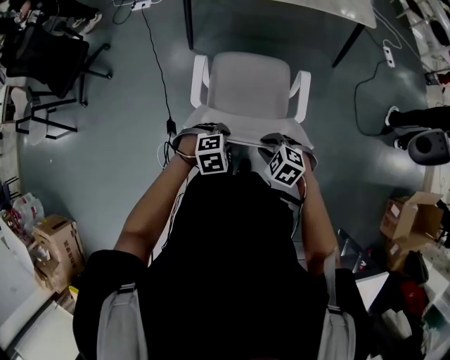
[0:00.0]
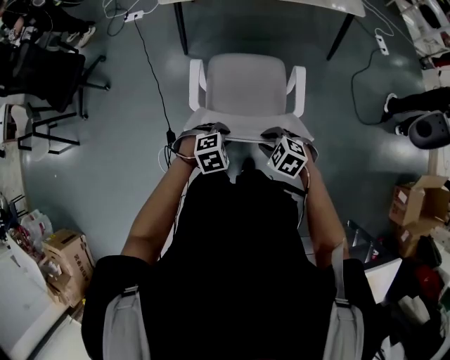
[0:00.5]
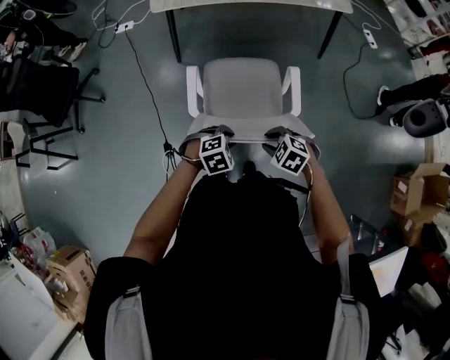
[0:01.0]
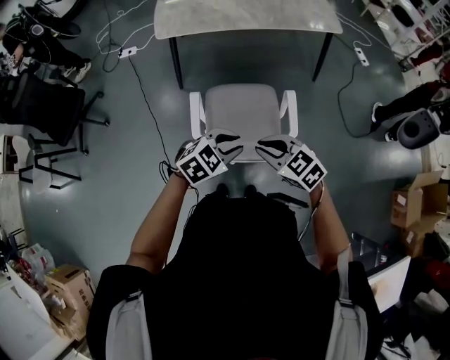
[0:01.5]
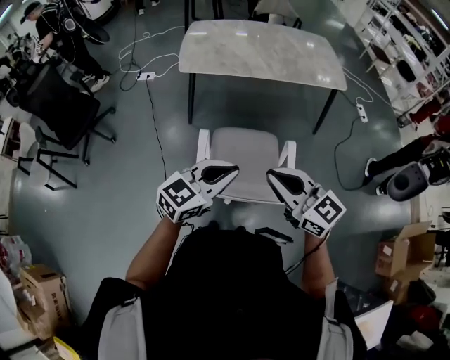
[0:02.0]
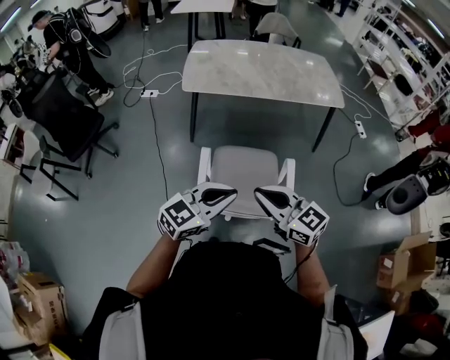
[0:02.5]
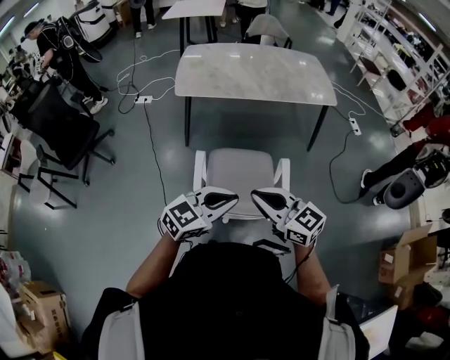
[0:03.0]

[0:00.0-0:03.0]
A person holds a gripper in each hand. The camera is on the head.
0:00.0 to 0:01.5: Both grippers move upward, some 15 cm. The right gripper swivels roughly 30 degrees, while the left gripper rotates some 30 degrees.
0:01.5 to 0:03.0: Both grippers move upward, some 15 cm. The right gripper rotates approximately 30 degrees. Meanwhile the left gripper swivels some 30 degrees, and closes.

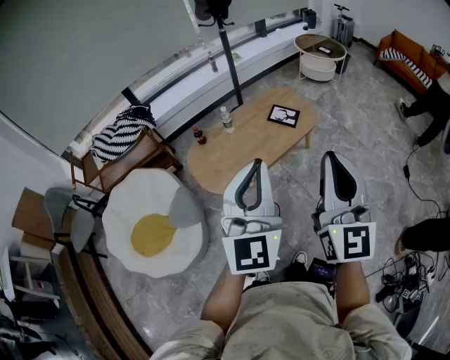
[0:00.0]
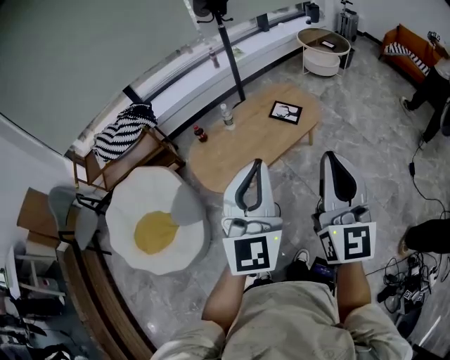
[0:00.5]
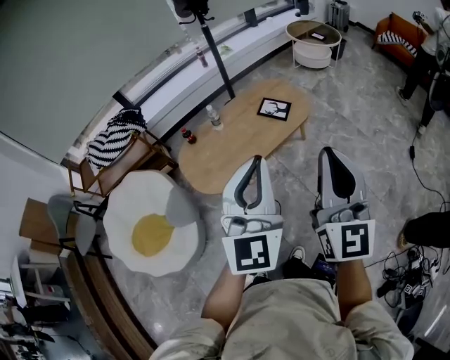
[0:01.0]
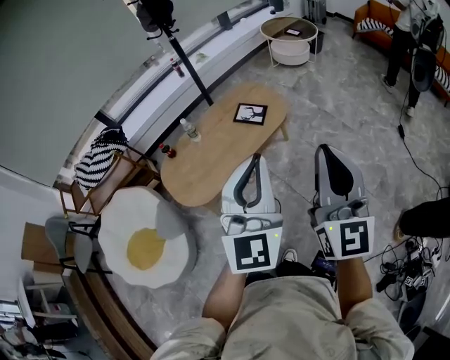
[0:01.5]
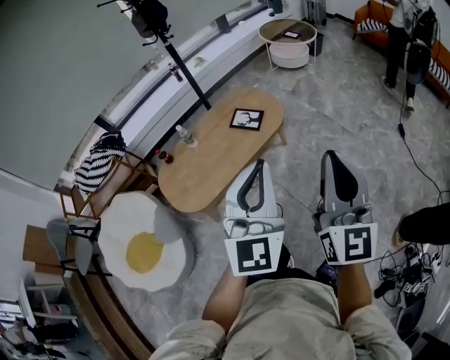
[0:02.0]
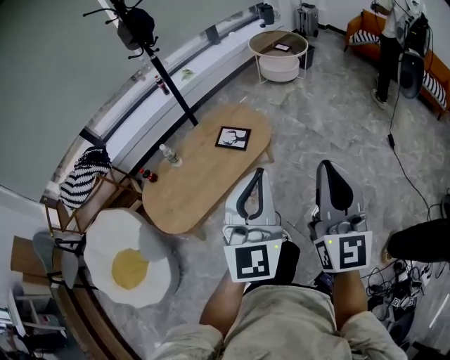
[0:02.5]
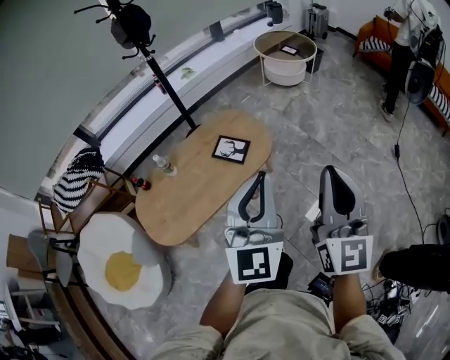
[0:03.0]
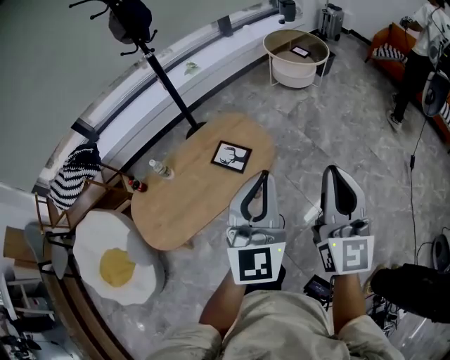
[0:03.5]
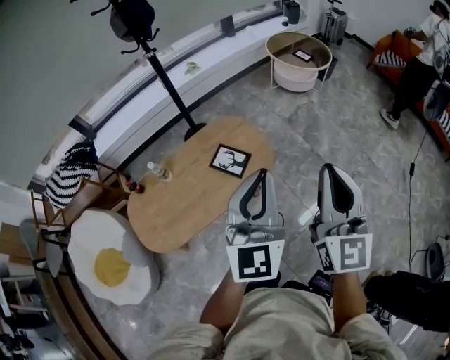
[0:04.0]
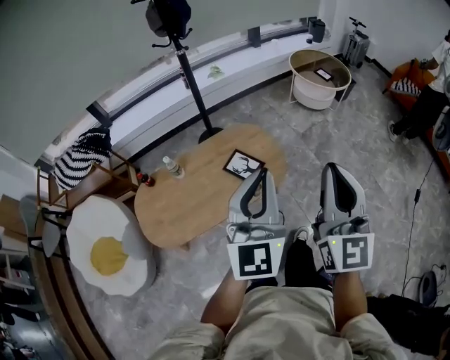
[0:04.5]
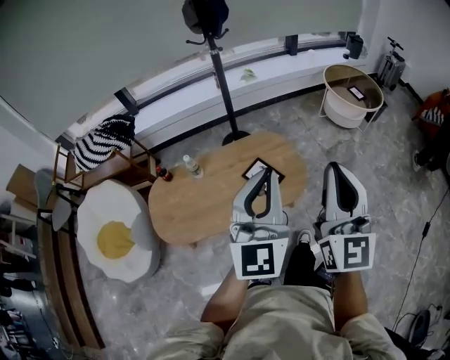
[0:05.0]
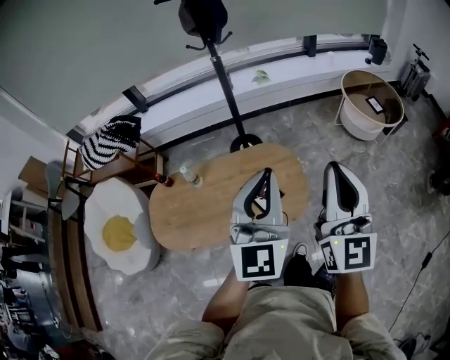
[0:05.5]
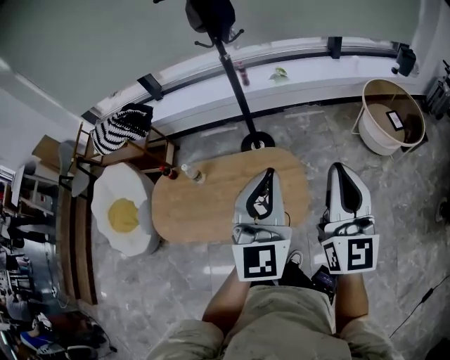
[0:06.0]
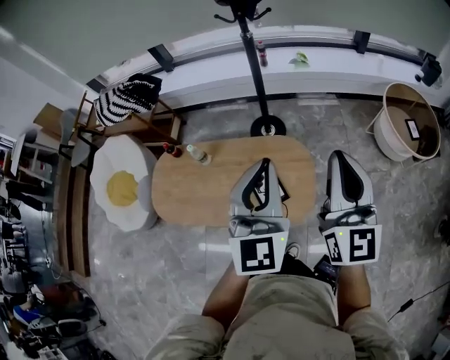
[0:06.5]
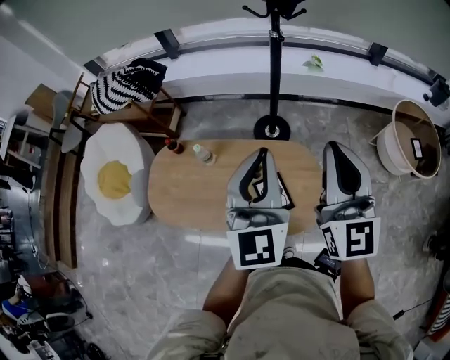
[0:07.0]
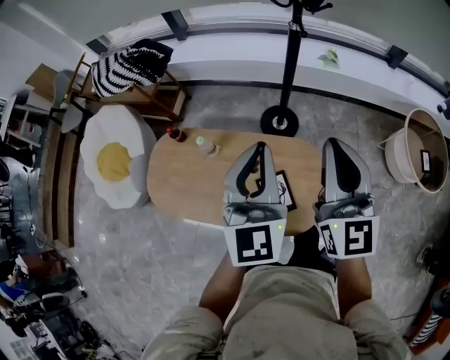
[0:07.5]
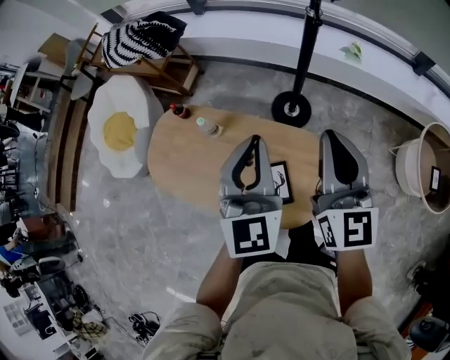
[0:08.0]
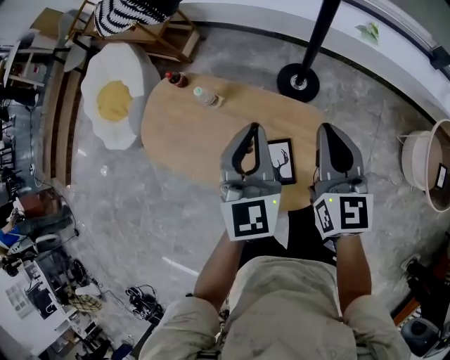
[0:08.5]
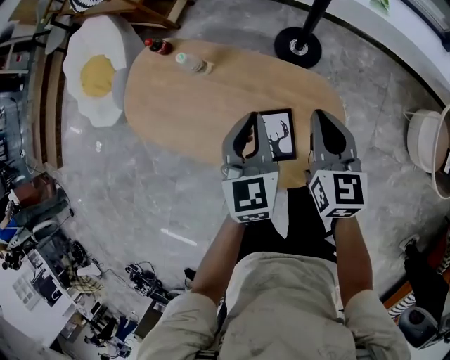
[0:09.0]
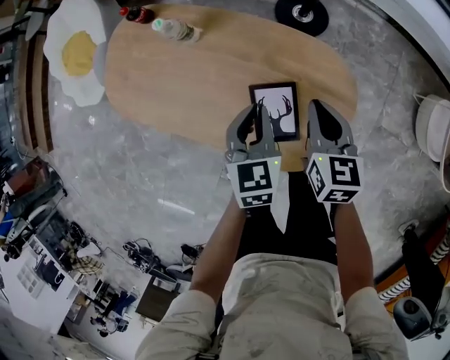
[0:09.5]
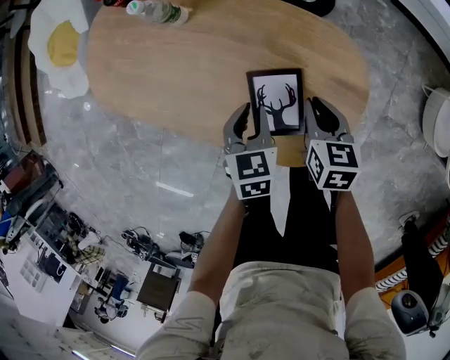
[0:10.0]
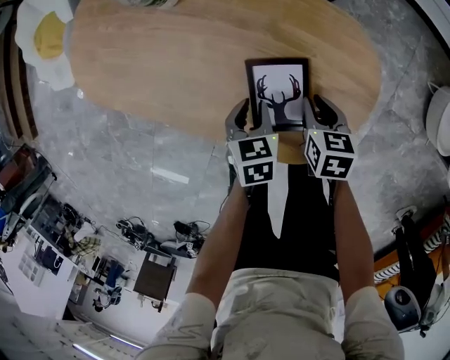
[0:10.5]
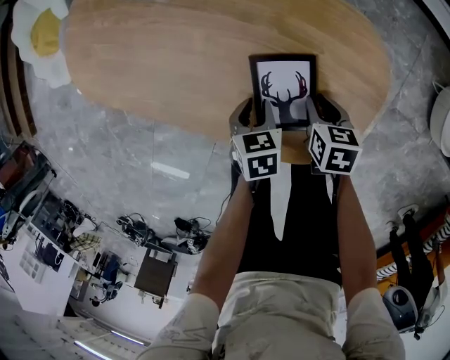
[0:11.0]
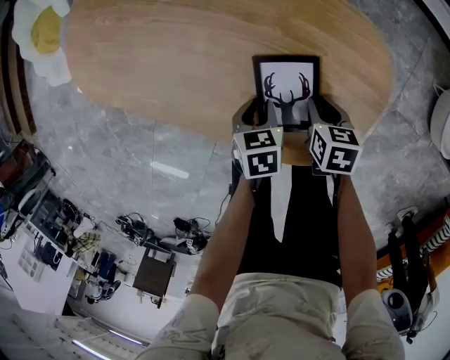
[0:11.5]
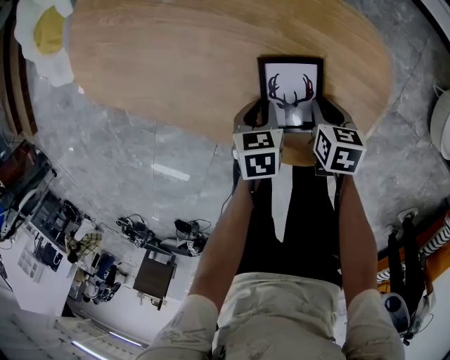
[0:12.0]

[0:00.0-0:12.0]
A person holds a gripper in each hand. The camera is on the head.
0:00.0 to 0:02.0: The left gripper goes approximately 30 cm to the right and forward. Meanwhile the right gripper travels to the right by roughly 25 cm.
0:02.0 to 0:04.0: The grippers both shift forward by about 35 cm.
0:04.0 to 0:06.0: The left gripper moves roughly 25 cm, and swivels roughly 30 degrees. The right gripper ends up approximately 35 cm from where it was, and swivels approximately 30 degrees.
0:06.0 to 0:08.0: The left gripper moves about 30 cm, and turns by approximately 30 degrees. Meanwhile the right gripper changes place by roughly 35 cm, and rotates some 30 degrees.
0:08.0 to 0:10.0: The two grippers go about 50 cm downward. The left gripper tilts its fingers some 40 degrees downward; the right gripper tilts its fingers approximately 50 degrees downward.
0:10.0 to 0:12.0: The left gripper heads downward and backward, covering roughly 15 cm, and turns by about 20 degrees. The right gripper is displaced downward by about 15 cm.

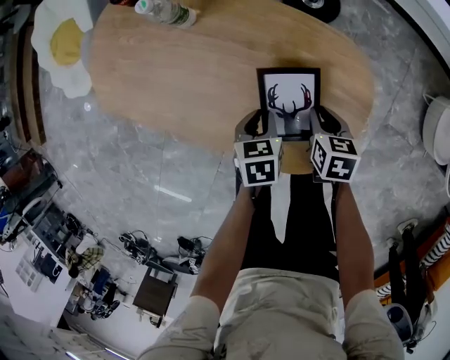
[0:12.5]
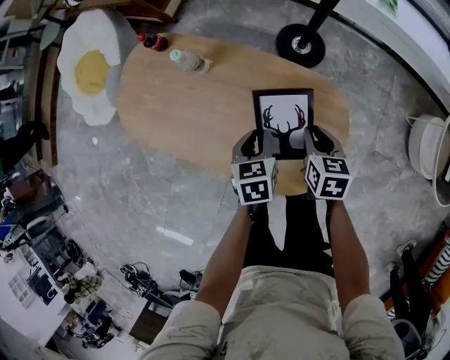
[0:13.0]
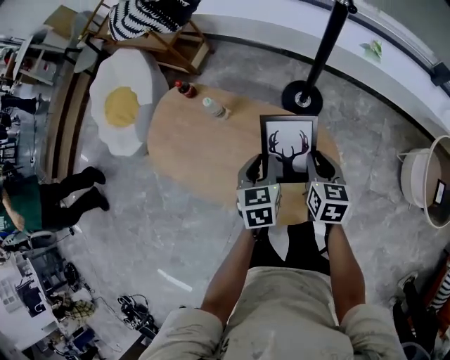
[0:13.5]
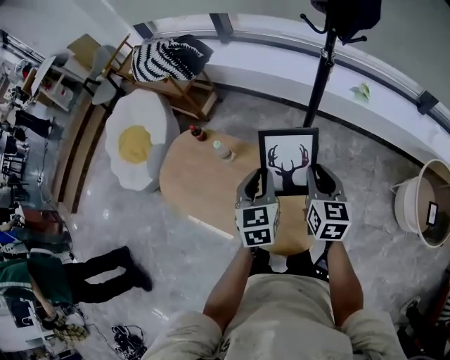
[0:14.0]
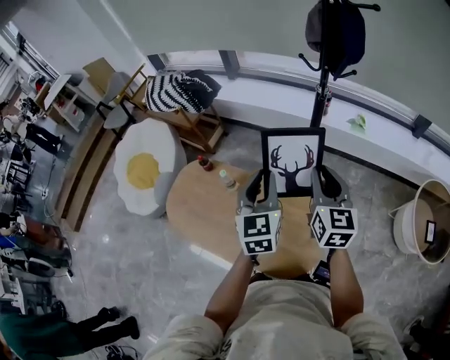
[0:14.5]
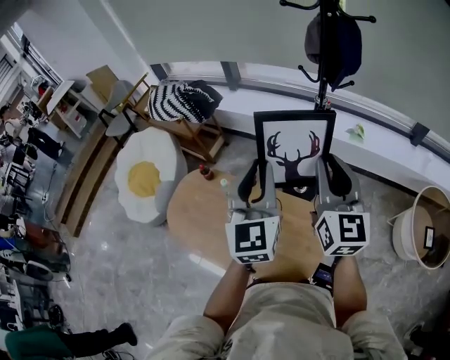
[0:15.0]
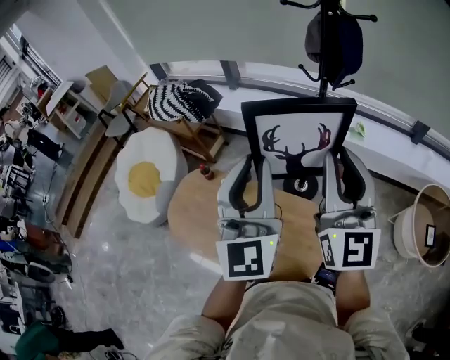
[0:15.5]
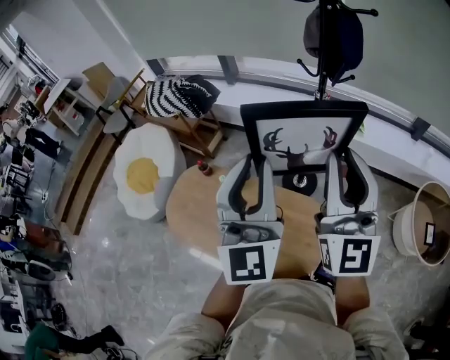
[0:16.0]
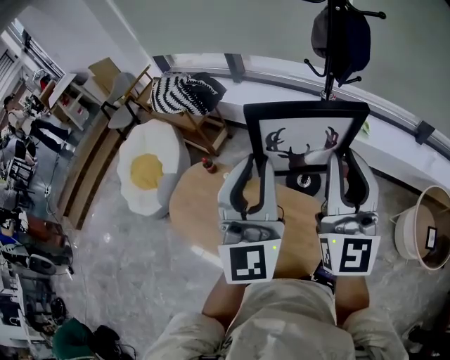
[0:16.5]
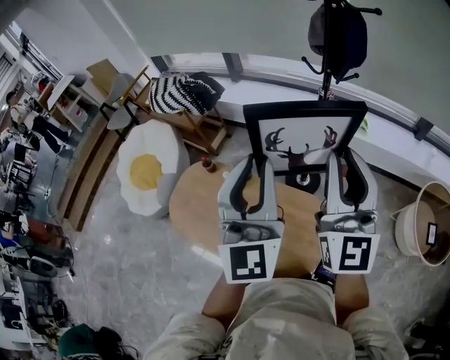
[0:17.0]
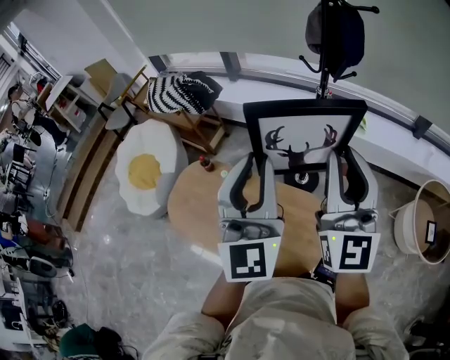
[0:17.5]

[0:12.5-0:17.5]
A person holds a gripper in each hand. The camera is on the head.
0:12.5 to 0:15.0: The two grippers go some 70 cm upward. The right gripper angles its fingers upward, by some 70 degrees. The left gripper angles its fingers upward, by approximately 60 degrees.
0:15.0 to 0:17.5: Both grippers travel together upward, some 10 cm.

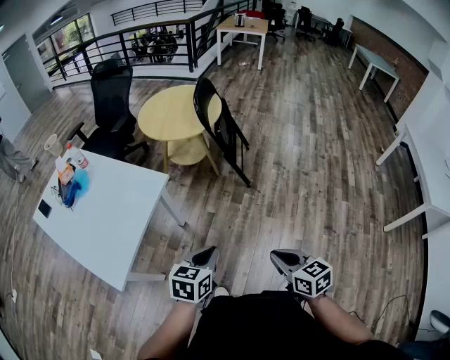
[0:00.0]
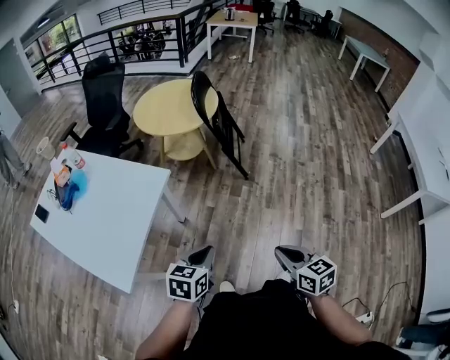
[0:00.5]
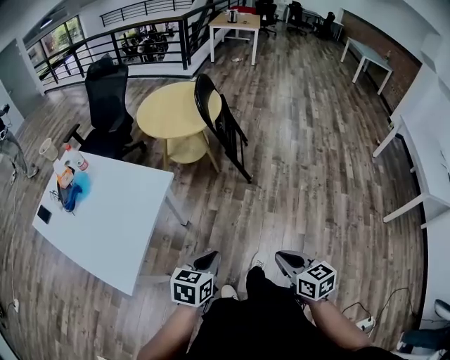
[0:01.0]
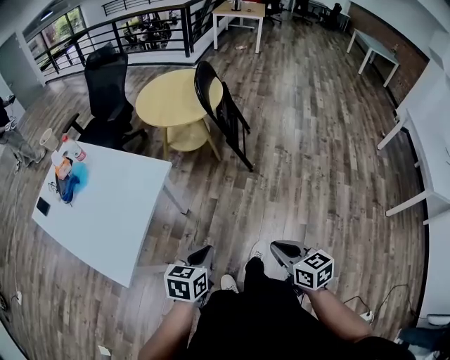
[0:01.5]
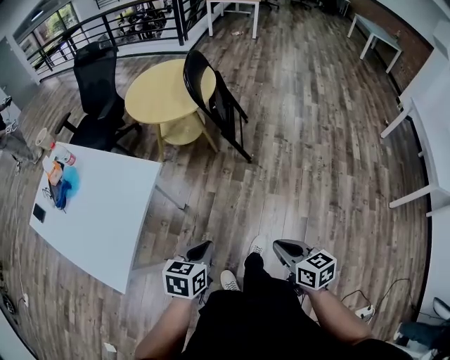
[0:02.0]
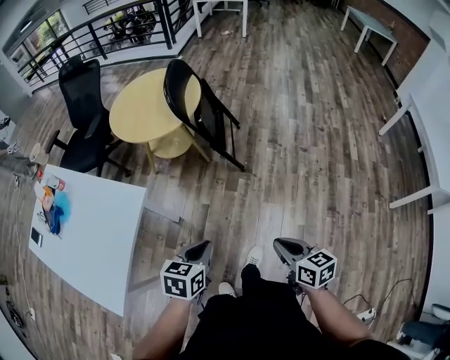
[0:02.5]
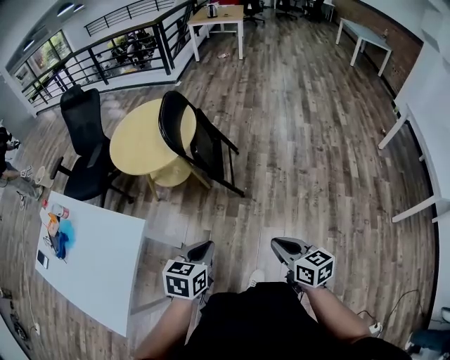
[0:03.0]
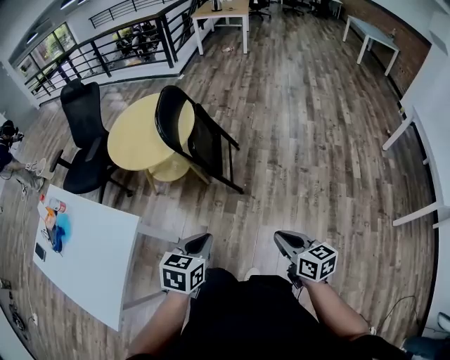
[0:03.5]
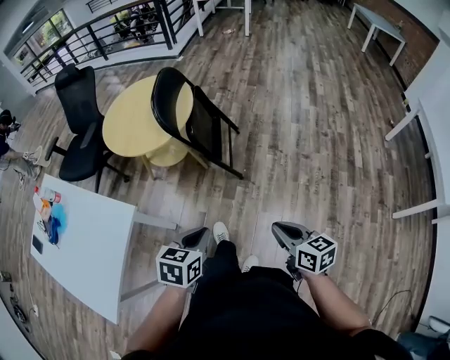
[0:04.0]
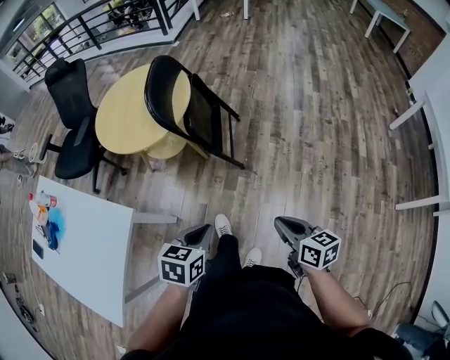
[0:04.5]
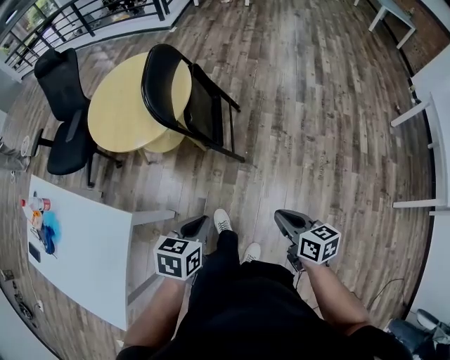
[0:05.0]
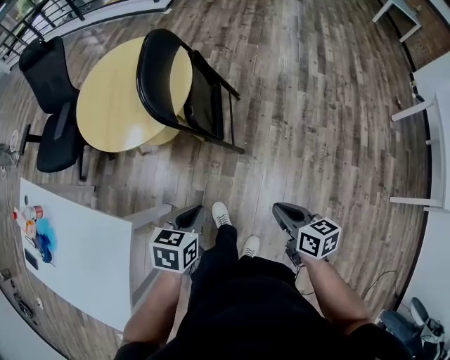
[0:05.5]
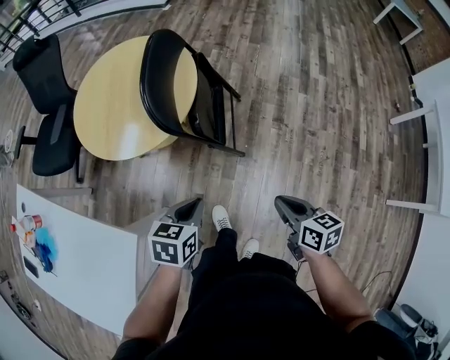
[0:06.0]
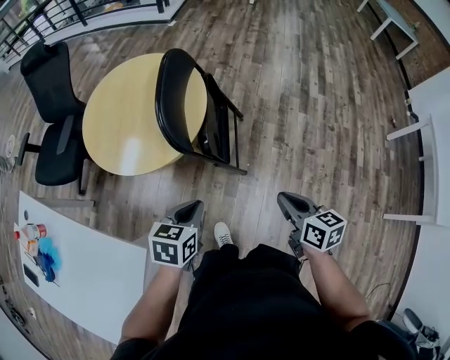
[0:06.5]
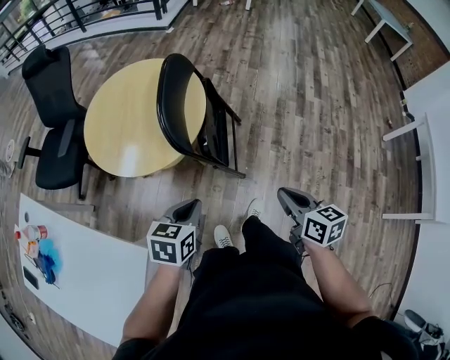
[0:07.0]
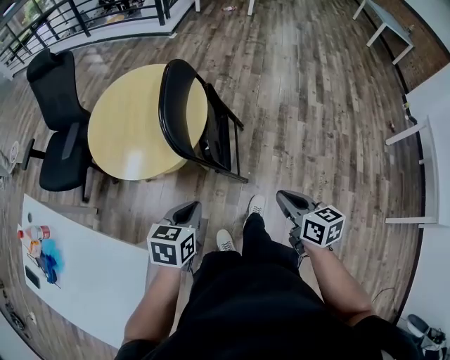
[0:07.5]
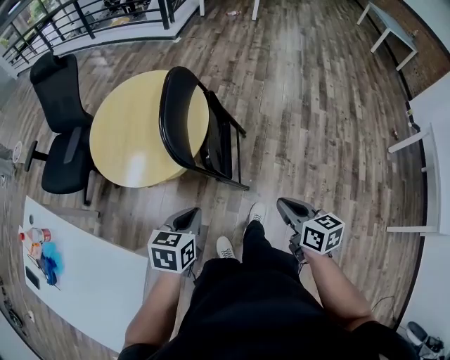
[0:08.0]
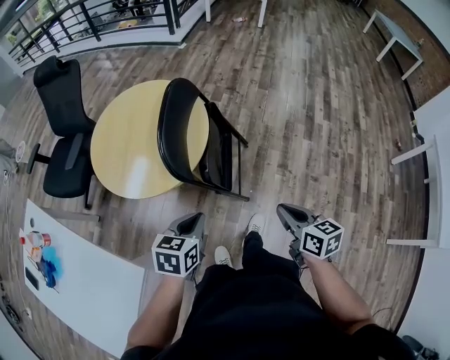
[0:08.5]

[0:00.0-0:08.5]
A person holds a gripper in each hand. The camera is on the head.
0:00.0 to 0:02.0: The right gripper ends up about 5 cm from where it was, while the left gripper moves approximately 5 cm.
0:02.0 to 0:04.0: The grippers both shift forward and to the right by about 25 cm.
0:04.0 to 0:06.5: The left gripper is displaced forward and to the left by some 30 cm, while the right gripper travels forward by some 30 cm.
0:06.5 to 0:08.5: The left gripper ends up about 5 cm from where it was; the right gripper moves forward, about 5 cm.
